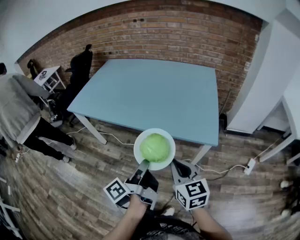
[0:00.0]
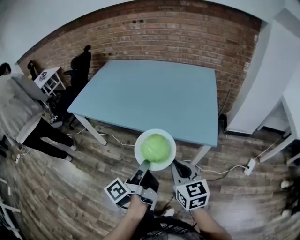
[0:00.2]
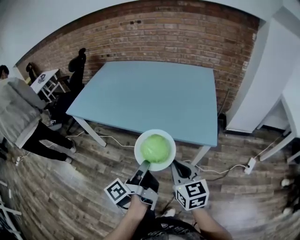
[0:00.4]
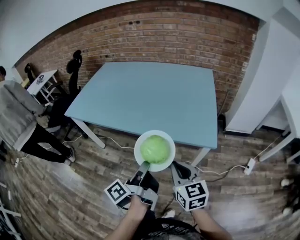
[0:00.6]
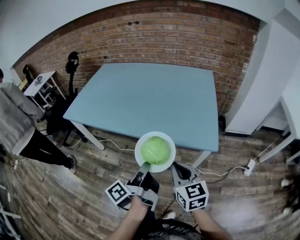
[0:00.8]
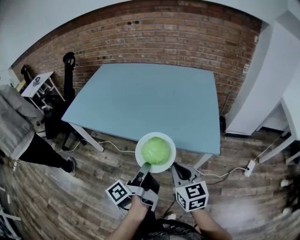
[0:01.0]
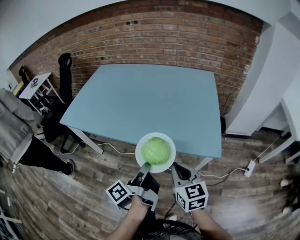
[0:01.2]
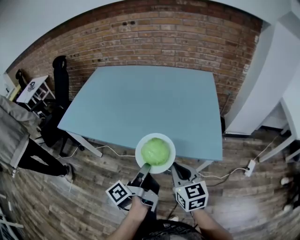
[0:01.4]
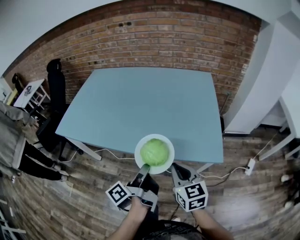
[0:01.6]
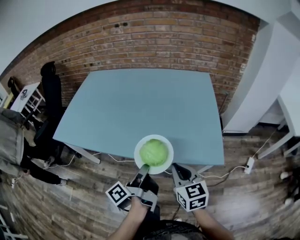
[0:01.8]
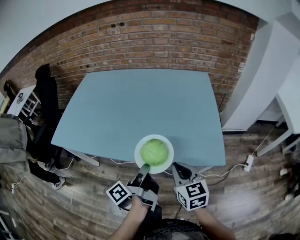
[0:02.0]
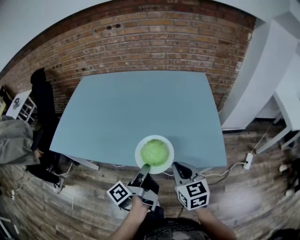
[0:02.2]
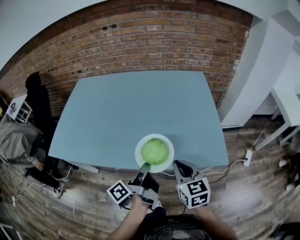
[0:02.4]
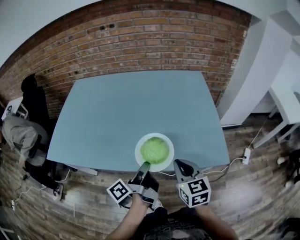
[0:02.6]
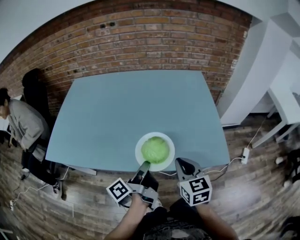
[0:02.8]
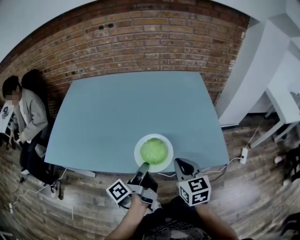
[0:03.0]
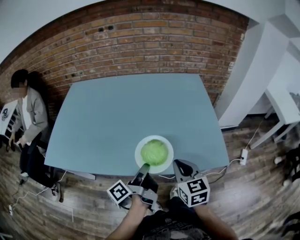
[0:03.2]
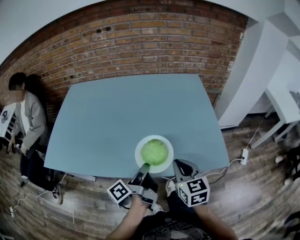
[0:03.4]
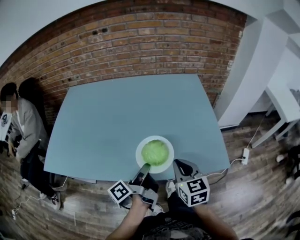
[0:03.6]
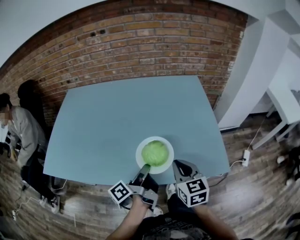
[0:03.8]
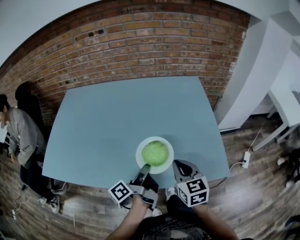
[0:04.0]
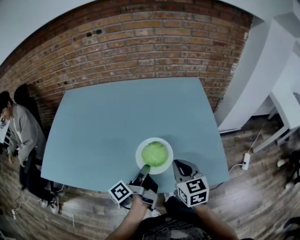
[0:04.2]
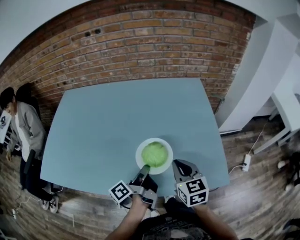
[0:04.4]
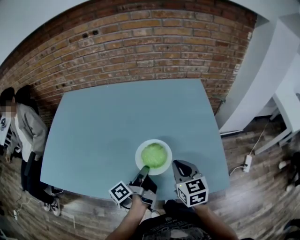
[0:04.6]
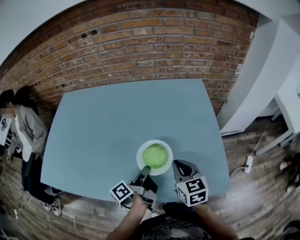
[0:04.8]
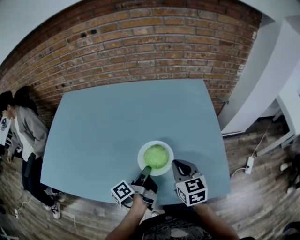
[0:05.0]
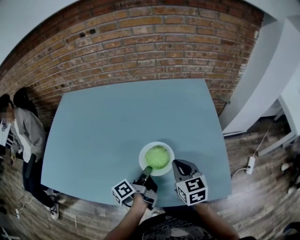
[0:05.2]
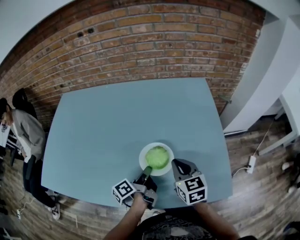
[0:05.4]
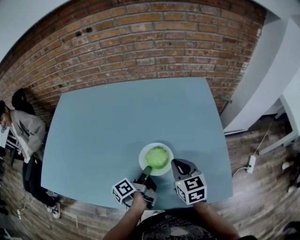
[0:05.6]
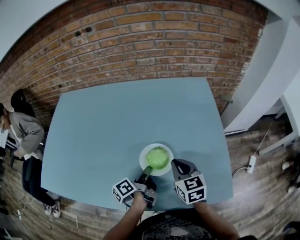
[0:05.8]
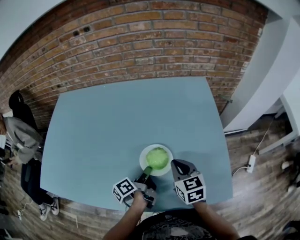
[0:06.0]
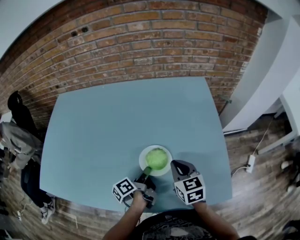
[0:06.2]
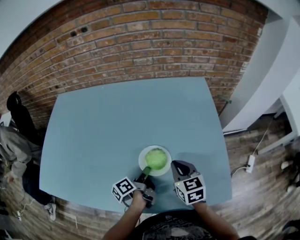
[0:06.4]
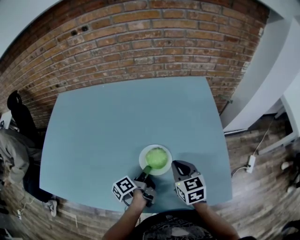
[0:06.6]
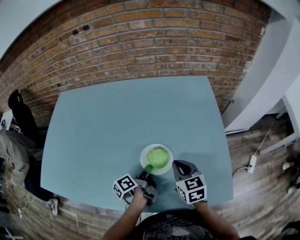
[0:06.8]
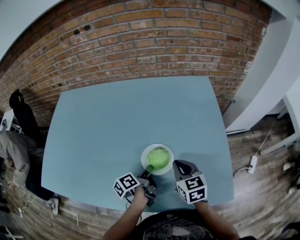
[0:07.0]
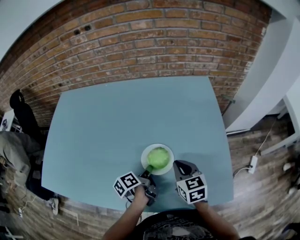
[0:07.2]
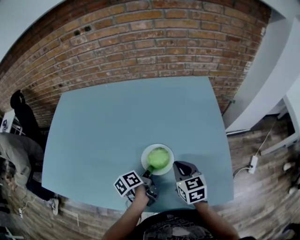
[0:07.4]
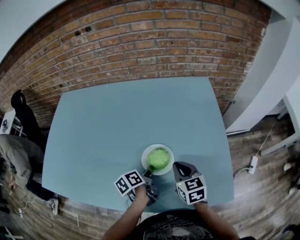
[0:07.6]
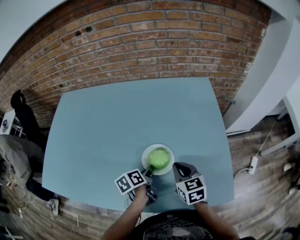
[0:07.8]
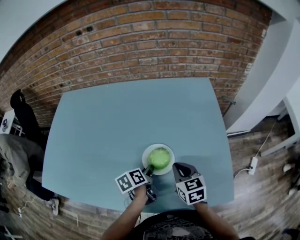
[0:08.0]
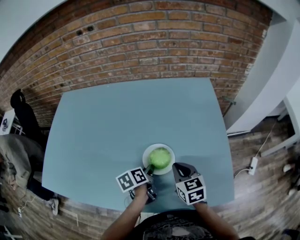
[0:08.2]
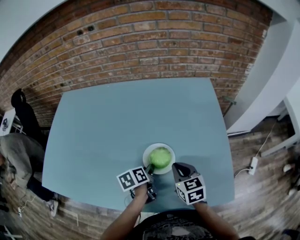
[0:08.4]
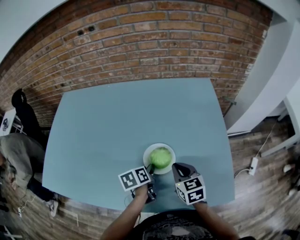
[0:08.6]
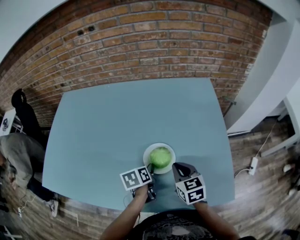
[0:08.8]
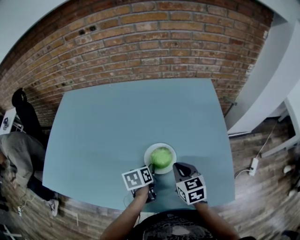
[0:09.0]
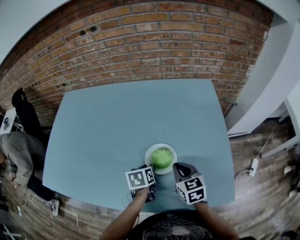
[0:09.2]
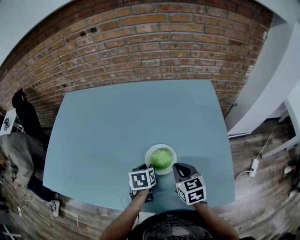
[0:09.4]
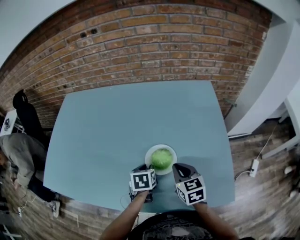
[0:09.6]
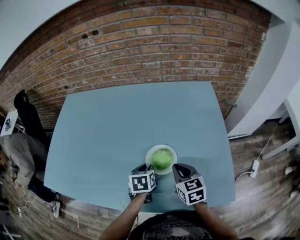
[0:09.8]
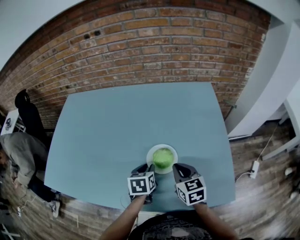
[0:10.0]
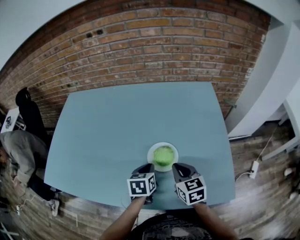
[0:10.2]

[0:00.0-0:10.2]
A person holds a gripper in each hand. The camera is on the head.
0:00.0 to 0:01.4: The right gripper ends up approximately 10 cm from where it was.
0:01.4 to 0:03.0: The right gripper changes place by roughly 15 cm.
0:03.0 to 0:04.4: The right gripper moves roughly 10 cm.
0:04.4 to 0:05.8: The right gripper ends up about 10 cm from where it was.

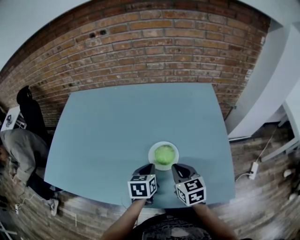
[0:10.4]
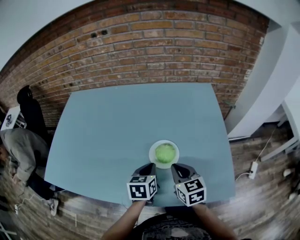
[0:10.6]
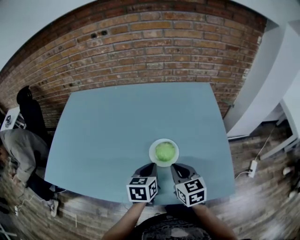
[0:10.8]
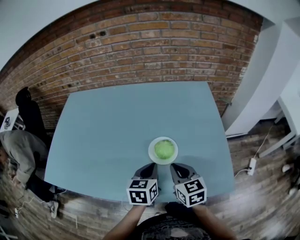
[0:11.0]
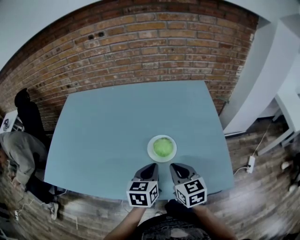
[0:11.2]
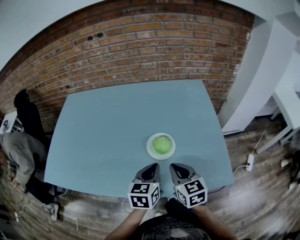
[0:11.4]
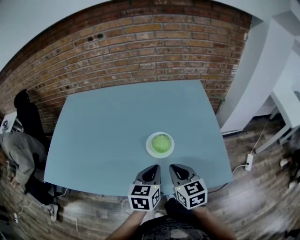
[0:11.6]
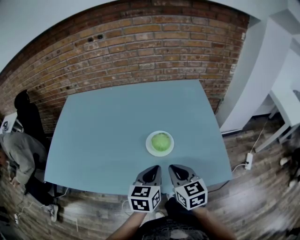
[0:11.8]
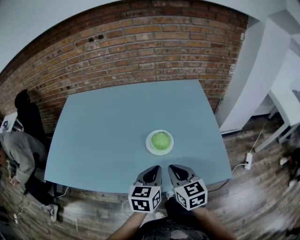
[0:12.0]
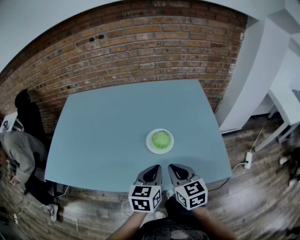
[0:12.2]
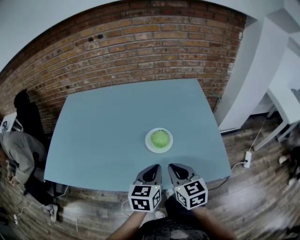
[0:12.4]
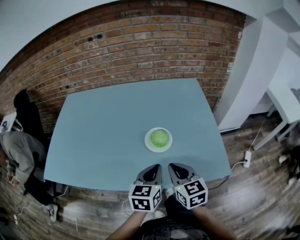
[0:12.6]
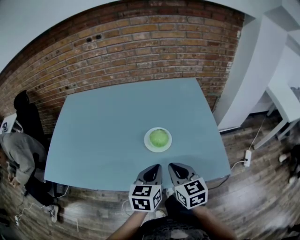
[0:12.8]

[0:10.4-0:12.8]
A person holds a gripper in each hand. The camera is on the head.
0:10.4 to 0:11.6: The right gripper changes place by roughly 10 cm.

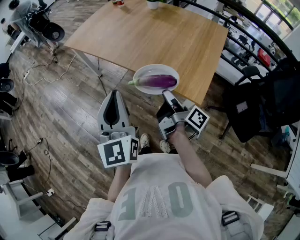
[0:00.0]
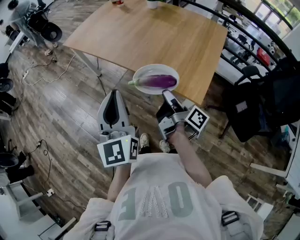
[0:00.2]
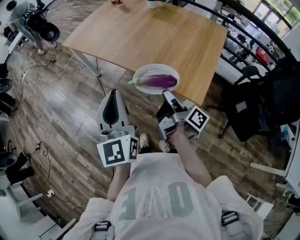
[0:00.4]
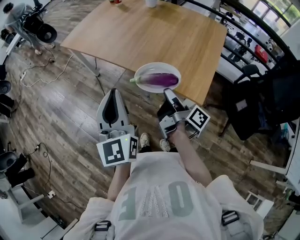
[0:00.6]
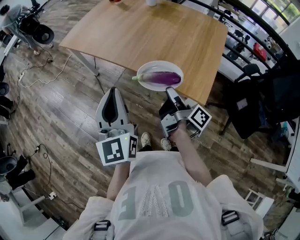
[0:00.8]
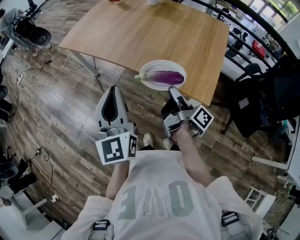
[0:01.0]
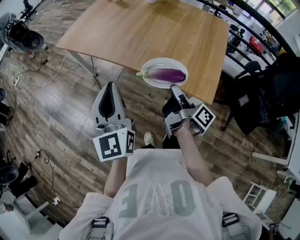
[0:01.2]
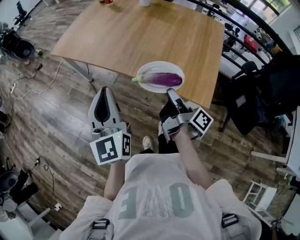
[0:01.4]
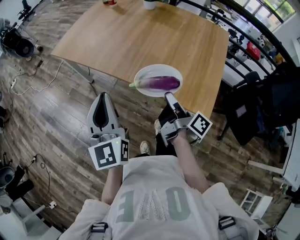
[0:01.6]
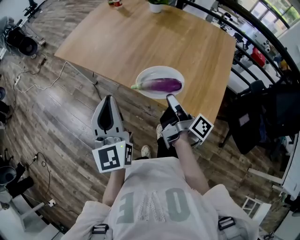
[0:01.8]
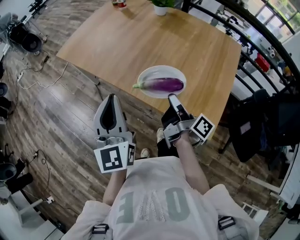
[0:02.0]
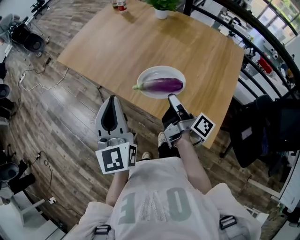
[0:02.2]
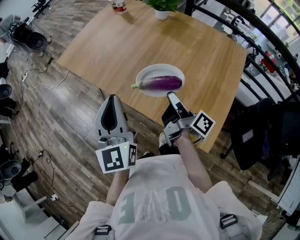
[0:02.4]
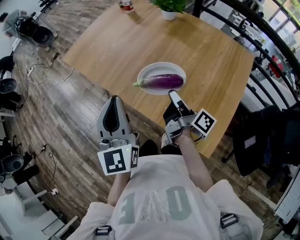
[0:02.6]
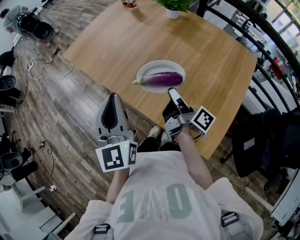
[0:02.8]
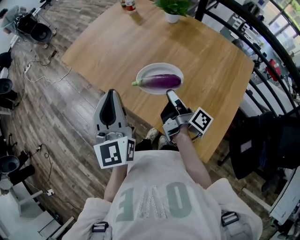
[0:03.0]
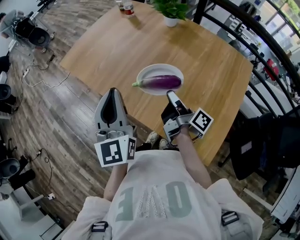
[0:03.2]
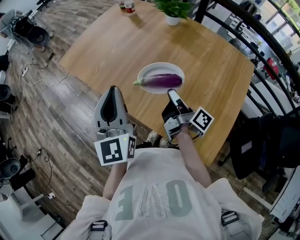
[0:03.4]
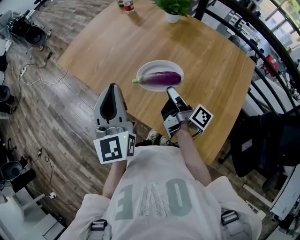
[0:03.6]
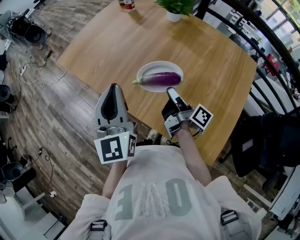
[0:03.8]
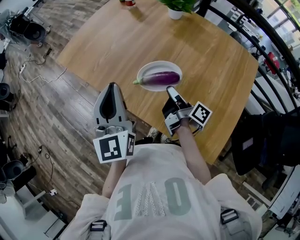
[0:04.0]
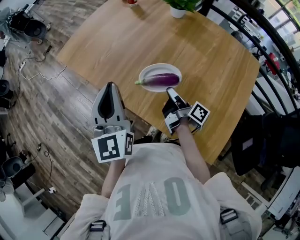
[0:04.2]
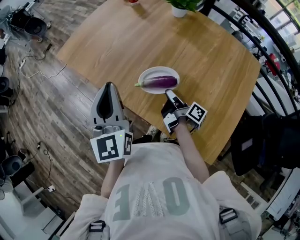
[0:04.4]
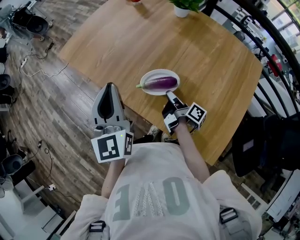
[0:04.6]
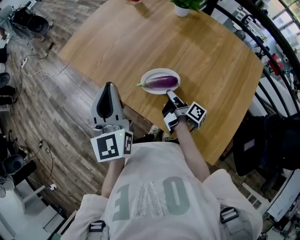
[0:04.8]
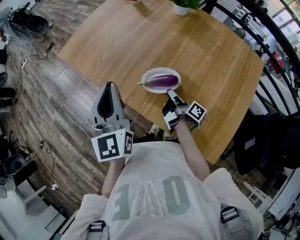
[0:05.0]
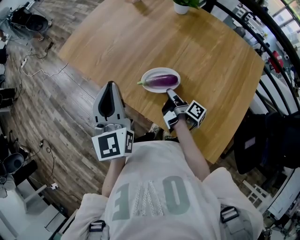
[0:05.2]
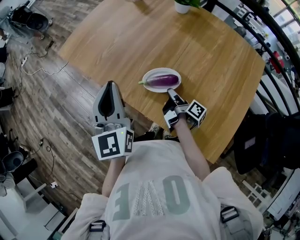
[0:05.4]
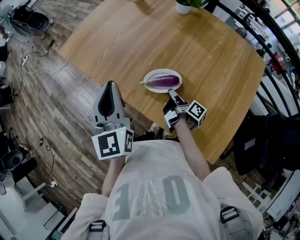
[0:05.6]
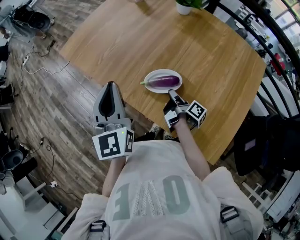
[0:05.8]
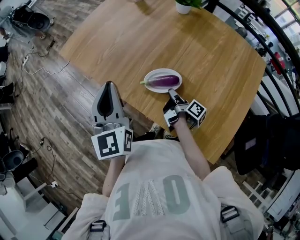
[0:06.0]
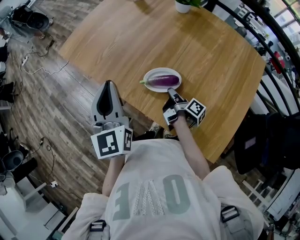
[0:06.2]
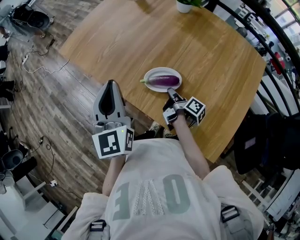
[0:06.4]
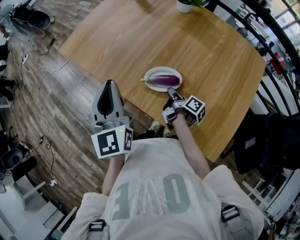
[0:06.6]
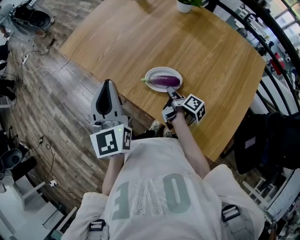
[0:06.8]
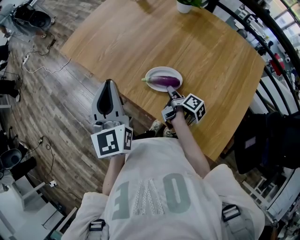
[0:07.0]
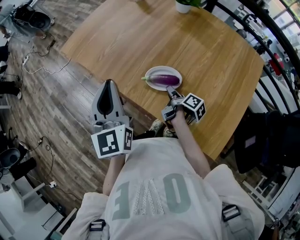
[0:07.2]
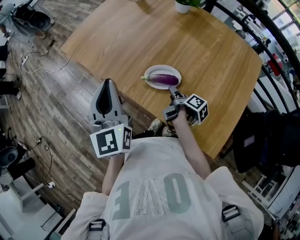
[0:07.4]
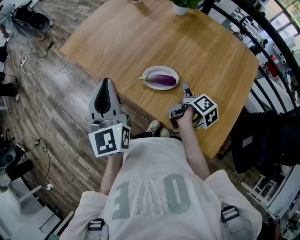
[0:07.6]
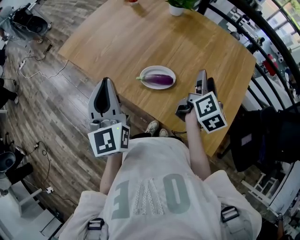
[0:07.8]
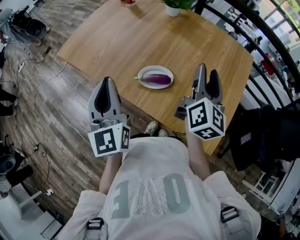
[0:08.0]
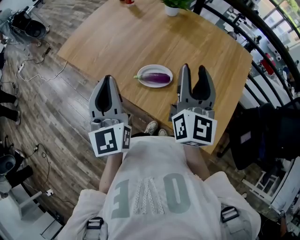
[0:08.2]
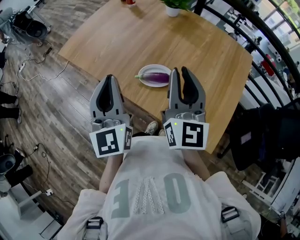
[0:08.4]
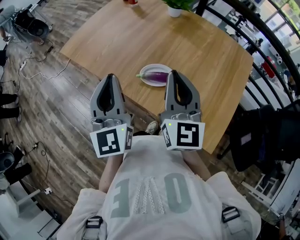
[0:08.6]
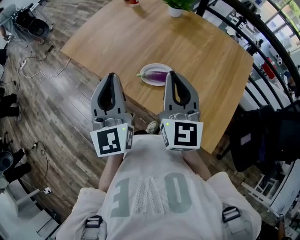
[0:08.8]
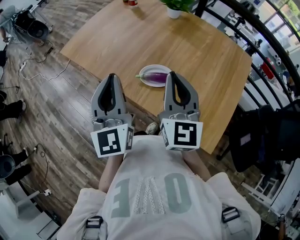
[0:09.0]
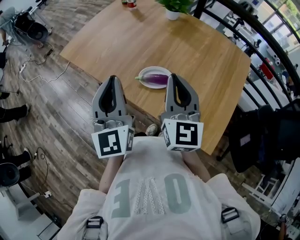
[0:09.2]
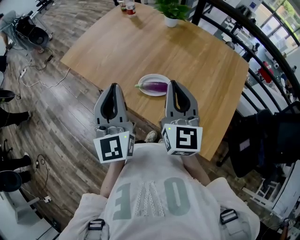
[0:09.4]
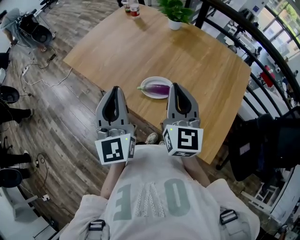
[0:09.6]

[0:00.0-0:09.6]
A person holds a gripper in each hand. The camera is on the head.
0:00.0 to 0:01.6: The left gripper shifts by about 15 cm.
0:01.6 to 0:03.2: The left gripper moves approximately 20 cm.
0:03.2 to 0:04.8: The left gripper moves some 5 cm.

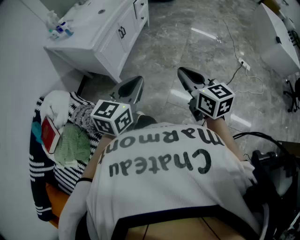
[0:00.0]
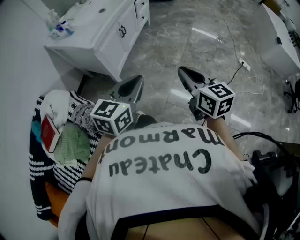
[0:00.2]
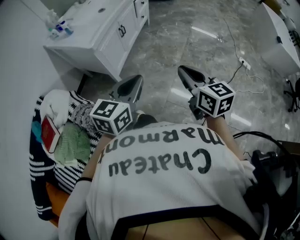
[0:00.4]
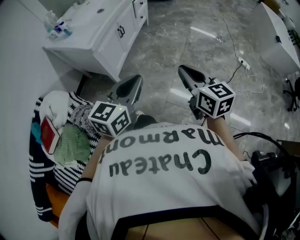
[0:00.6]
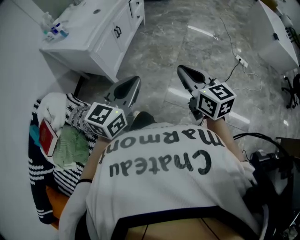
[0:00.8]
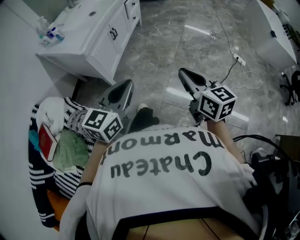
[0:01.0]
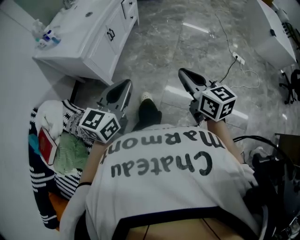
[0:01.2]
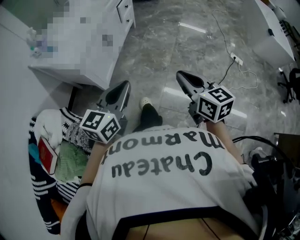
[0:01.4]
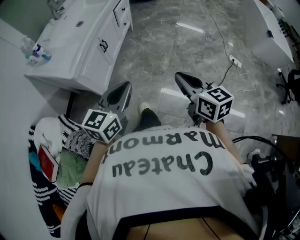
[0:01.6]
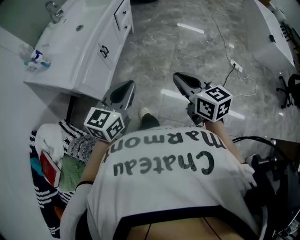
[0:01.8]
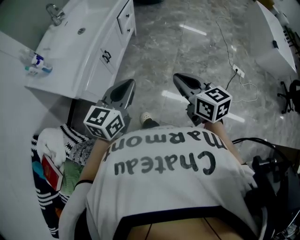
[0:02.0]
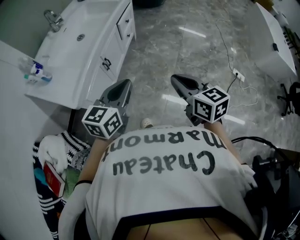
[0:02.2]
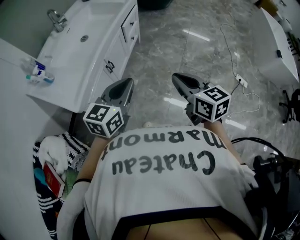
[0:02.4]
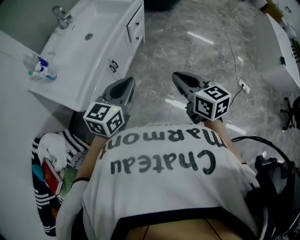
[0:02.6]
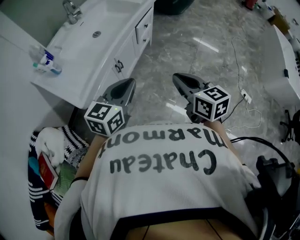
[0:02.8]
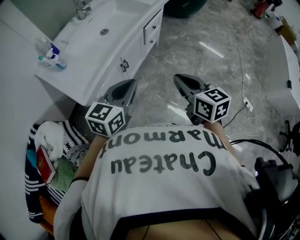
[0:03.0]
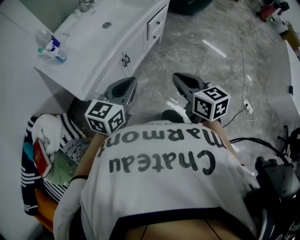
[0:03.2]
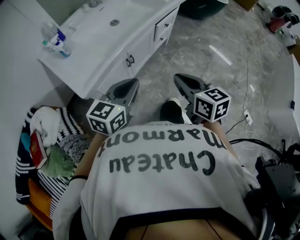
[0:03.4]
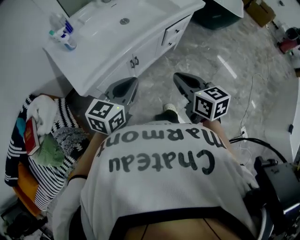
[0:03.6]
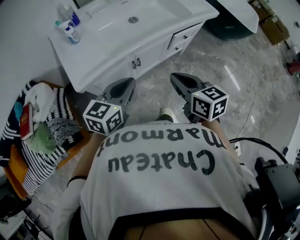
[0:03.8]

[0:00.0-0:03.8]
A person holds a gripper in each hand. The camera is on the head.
0:00.0 to 0:01.2: The grippers move only a little.
0:01.2 to 0:02.6: The grippers both shift forward by some 30 cm.
0:02.6 to 0:03.8: The right gripper changes place by about 20 cm, and changes its angle by some 30 degrees. The left gripper shifts by about 10 cm, and rotates about 30 degrees.
